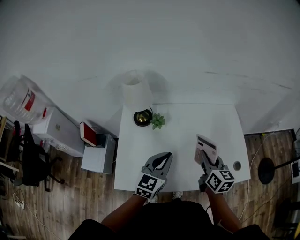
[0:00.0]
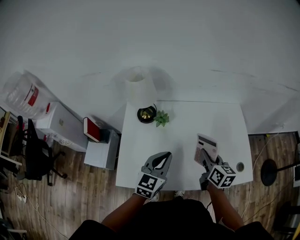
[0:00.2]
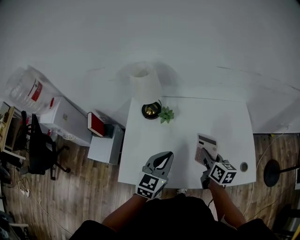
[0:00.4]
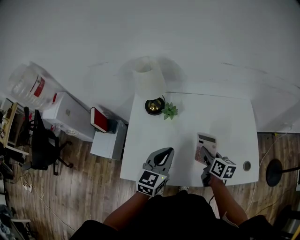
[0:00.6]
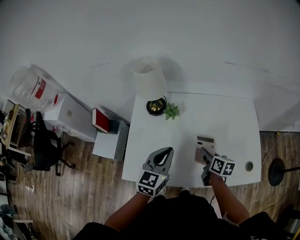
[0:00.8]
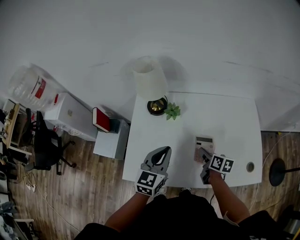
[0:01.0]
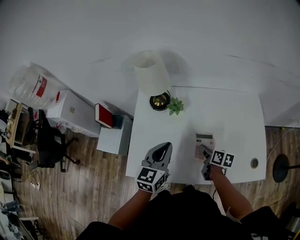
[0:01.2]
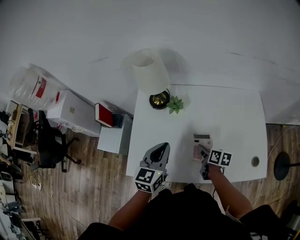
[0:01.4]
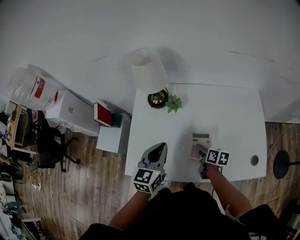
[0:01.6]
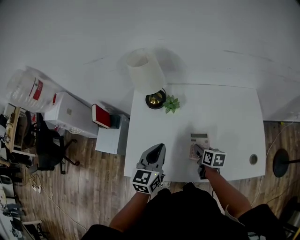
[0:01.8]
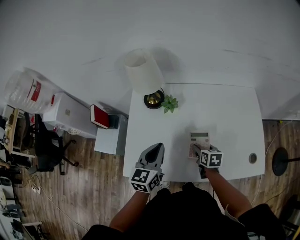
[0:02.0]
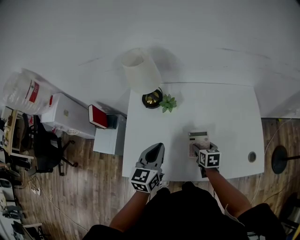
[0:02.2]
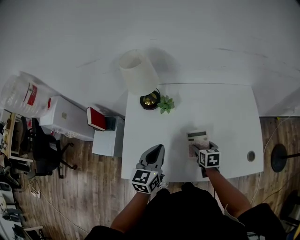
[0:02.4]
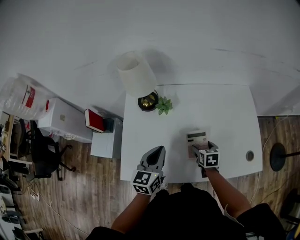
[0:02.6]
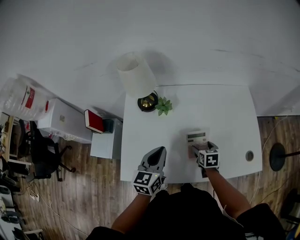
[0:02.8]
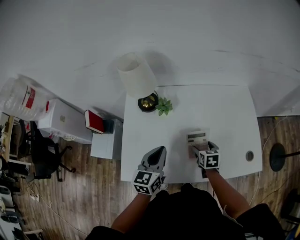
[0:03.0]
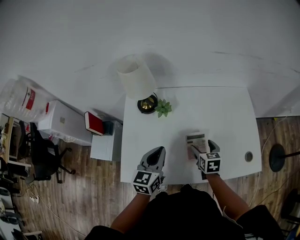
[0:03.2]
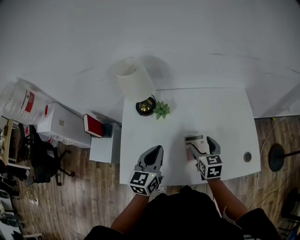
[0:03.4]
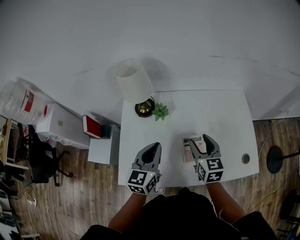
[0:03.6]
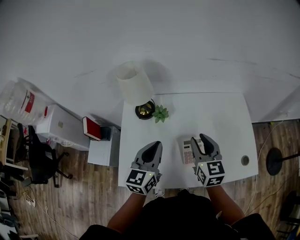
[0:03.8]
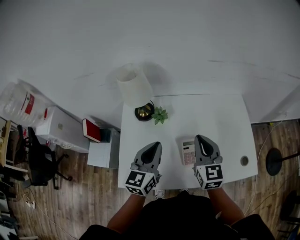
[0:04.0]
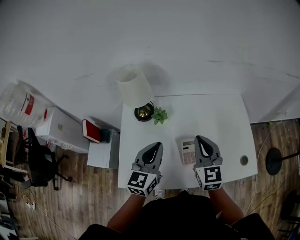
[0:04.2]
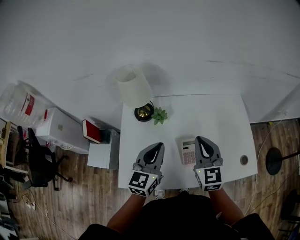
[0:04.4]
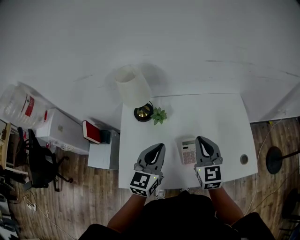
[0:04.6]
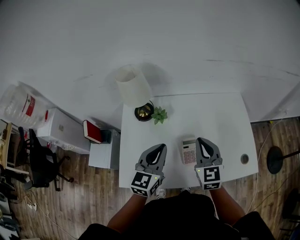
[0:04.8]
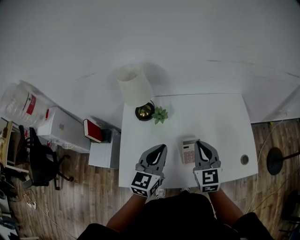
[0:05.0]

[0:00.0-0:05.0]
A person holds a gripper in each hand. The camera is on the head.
0:00.0 to 0:01.6: The left gripper goes approximately 10 cm to the left, and swivels about 20 degrees, while the right gripper is displaced downward by roughly 20 cm, and swivels about 40 degrees.
0:01.6 to 0:03.4: The right gripper heads upward, covering some 10 cm, changes its angle by roughly 40 degrees, and opens up.
0:03.4 to 0:05.0: The left gripper moves upward, about 5 cm. The right gripper goes roughly 10 cm upward, turns by approximately 20 degrees, and closes up.

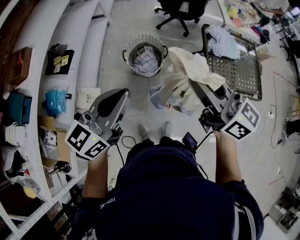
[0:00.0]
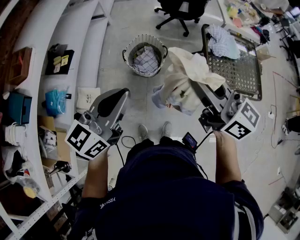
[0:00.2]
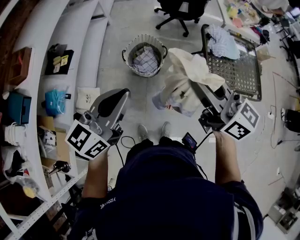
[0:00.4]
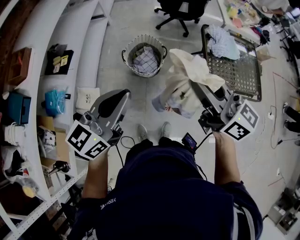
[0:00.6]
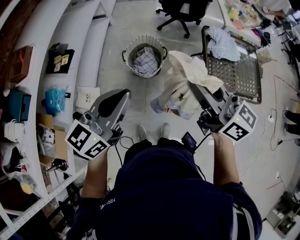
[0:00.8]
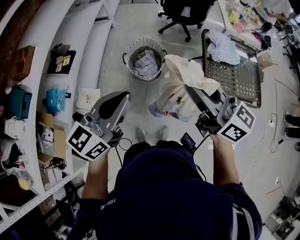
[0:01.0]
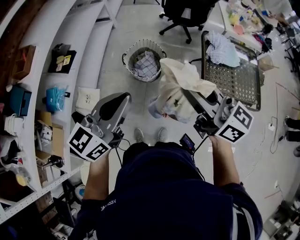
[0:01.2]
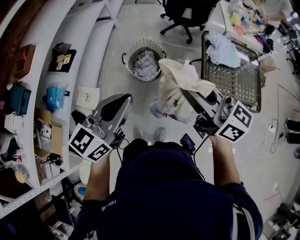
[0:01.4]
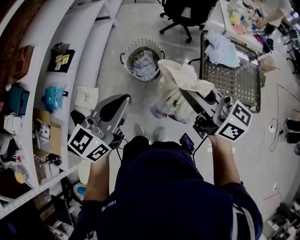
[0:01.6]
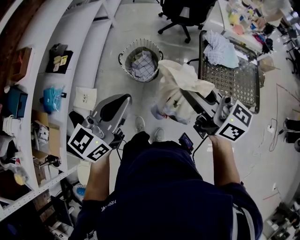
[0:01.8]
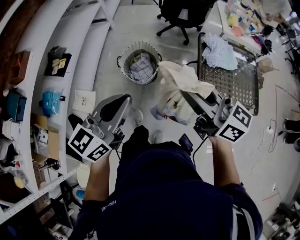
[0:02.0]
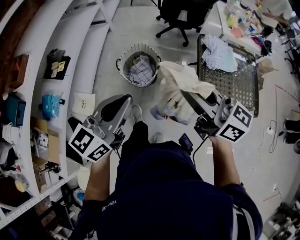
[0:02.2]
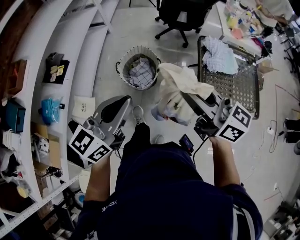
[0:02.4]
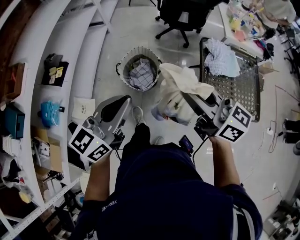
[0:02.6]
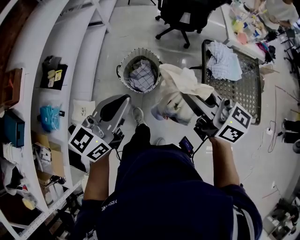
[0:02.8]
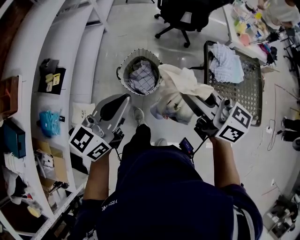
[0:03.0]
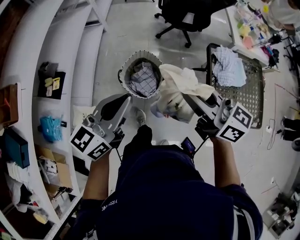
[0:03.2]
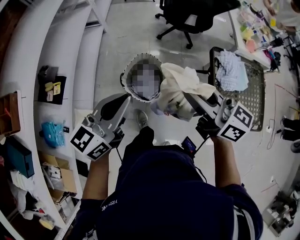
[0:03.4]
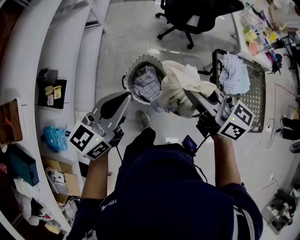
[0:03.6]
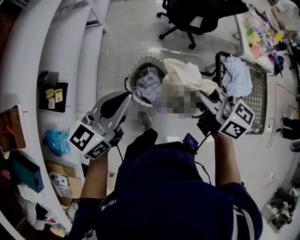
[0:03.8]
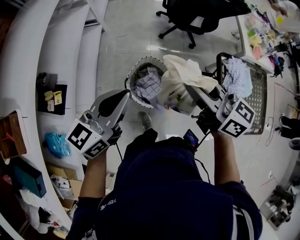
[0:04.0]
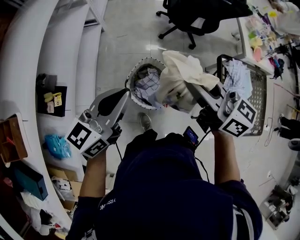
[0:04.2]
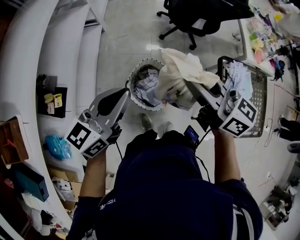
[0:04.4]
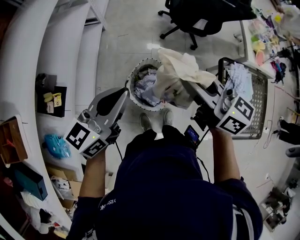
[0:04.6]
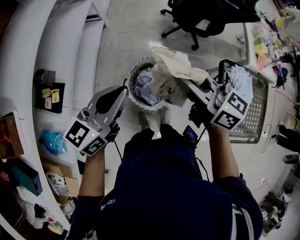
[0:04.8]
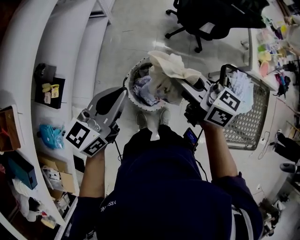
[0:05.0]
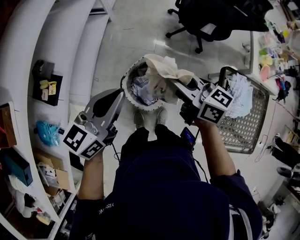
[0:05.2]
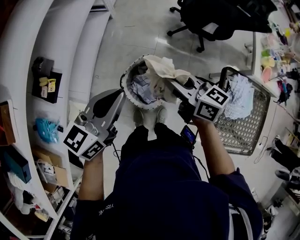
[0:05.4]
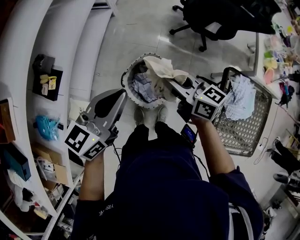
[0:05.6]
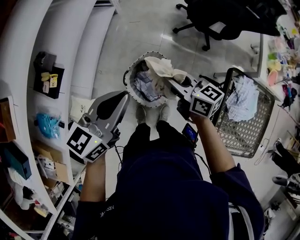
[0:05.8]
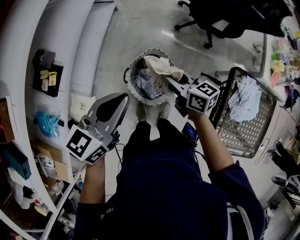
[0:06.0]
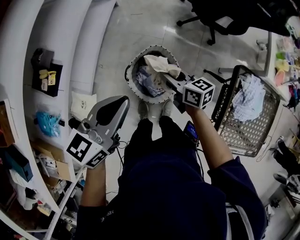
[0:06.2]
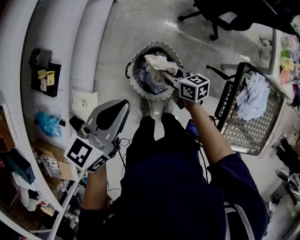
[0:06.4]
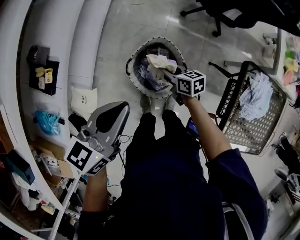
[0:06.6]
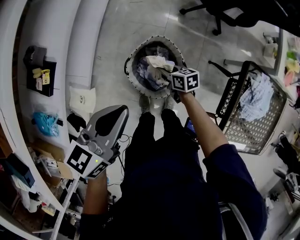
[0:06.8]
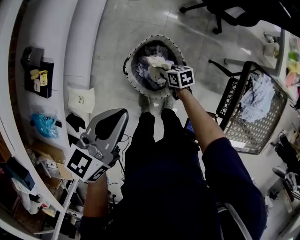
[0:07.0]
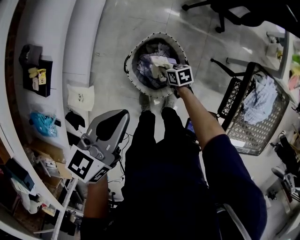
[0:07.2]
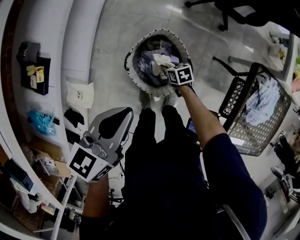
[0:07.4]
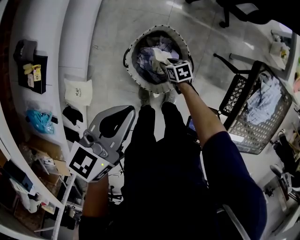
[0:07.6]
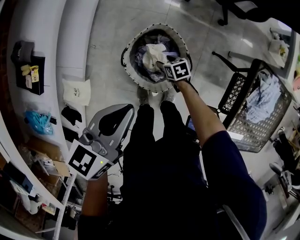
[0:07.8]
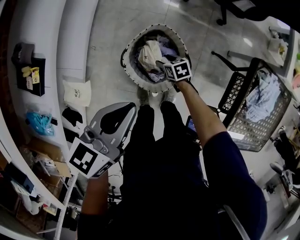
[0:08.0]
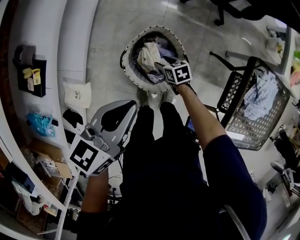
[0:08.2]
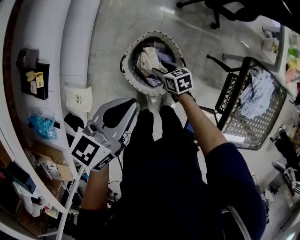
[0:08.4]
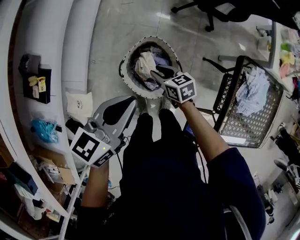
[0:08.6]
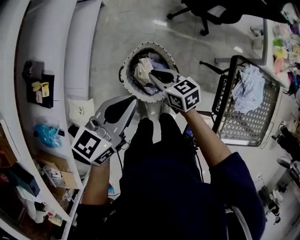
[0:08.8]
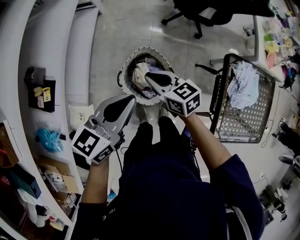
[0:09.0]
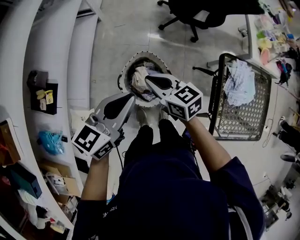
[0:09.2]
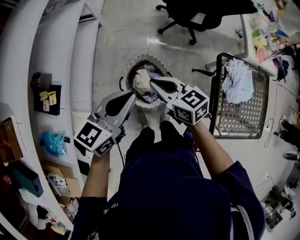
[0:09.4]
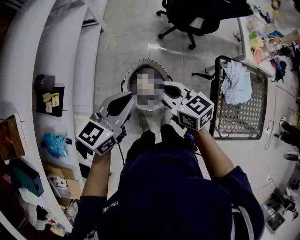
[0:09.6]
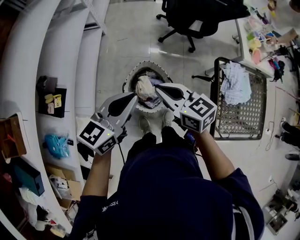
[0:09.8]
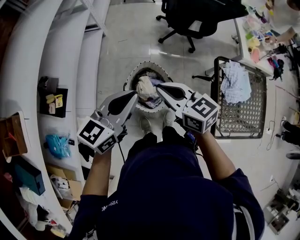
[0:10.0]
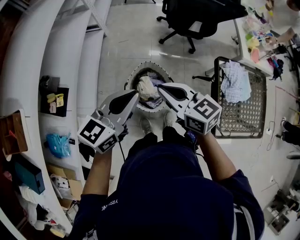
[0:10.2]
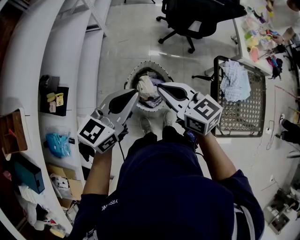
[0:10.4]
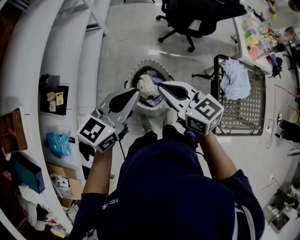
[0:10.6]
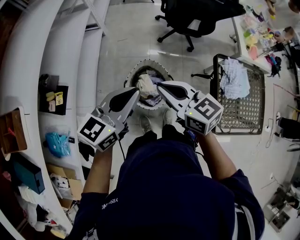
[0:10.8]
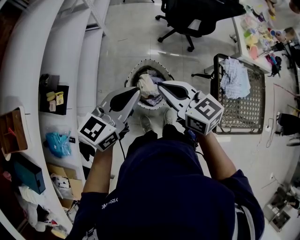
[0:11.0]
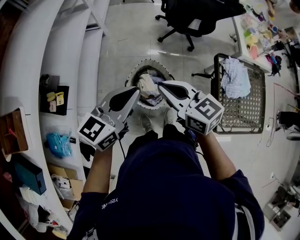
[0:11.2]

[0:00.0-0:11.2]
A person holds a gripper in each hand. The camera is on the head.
0:00.0 to 0:01.6: The grippers both shift to the right by some 10 cm.
0:01.6 to 0:03.2: Both grippers move forward, some 20 cm.
0:03.2 to 0:04.8: The two grippers go some 20 cm forward.
0:04.8 to 0:06.4: The left gripper travels downward by roughly 10 cm. Meanwhile the right gripper is displaced downward by about 30 cm, and swivels approximately 30 degrees.
0:06.4 to 0:08.0: The right gripper heads downward, covering approximately 25 cm, angles its fingers downward, by roughly 30 degrees, and opens its fingers. The left gripper heads downward, covering roughly 10 cm.
0:08.0 to 0:09.6: The right gripper moves upward, roughly 50 cm, tips its fingers upward by approximately 30 degrees, and closes up; the left gripper moves upward, roughly 15 cm, and rotates approximately 20 degrees.
0:09.6 to 0:11.2: The right gripper heads upward, covering about 5 cm; the left gripper ends up approximately 5 cm from where it was.

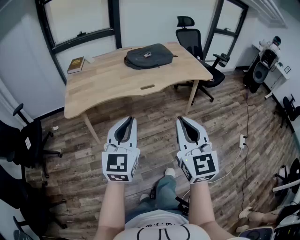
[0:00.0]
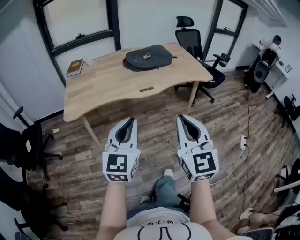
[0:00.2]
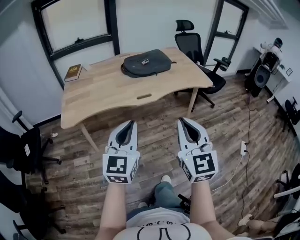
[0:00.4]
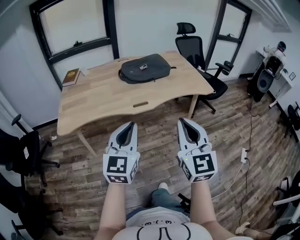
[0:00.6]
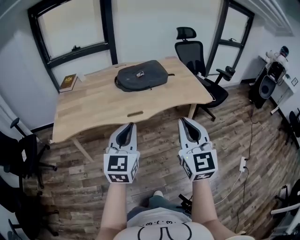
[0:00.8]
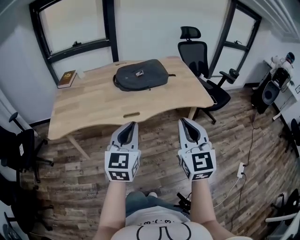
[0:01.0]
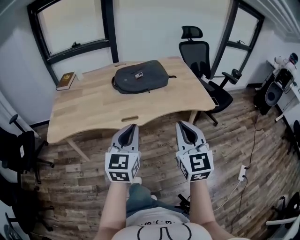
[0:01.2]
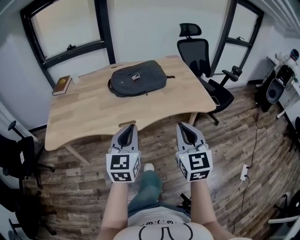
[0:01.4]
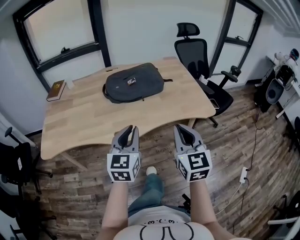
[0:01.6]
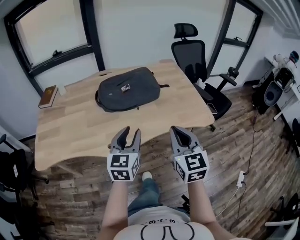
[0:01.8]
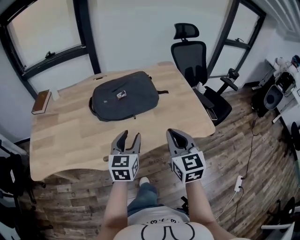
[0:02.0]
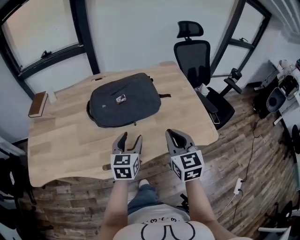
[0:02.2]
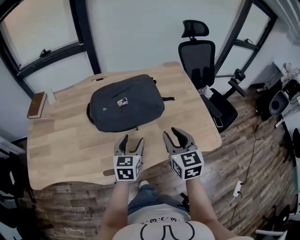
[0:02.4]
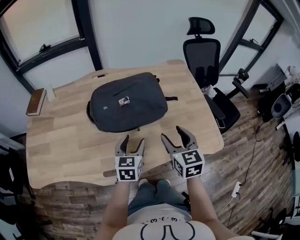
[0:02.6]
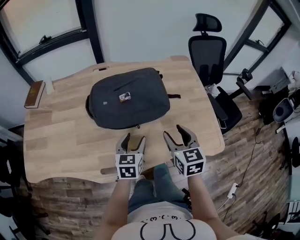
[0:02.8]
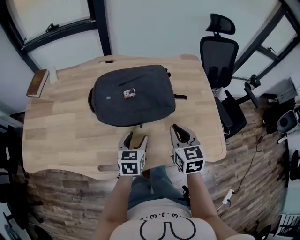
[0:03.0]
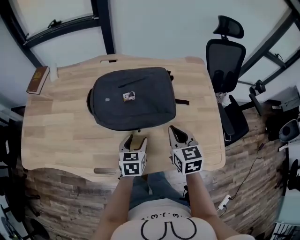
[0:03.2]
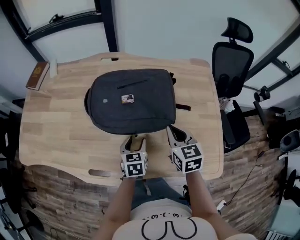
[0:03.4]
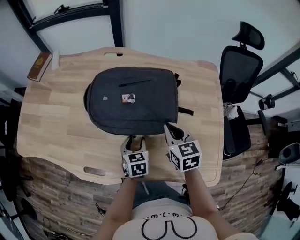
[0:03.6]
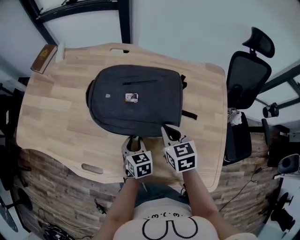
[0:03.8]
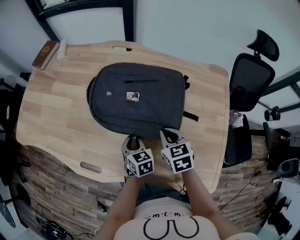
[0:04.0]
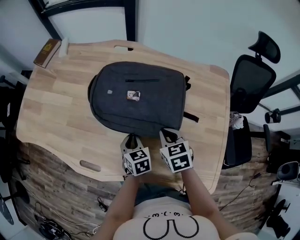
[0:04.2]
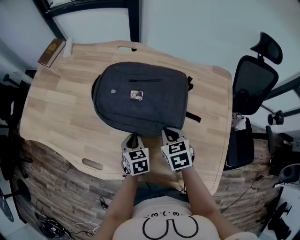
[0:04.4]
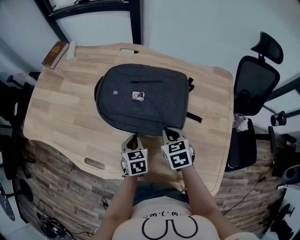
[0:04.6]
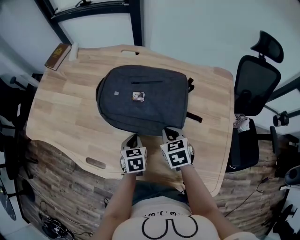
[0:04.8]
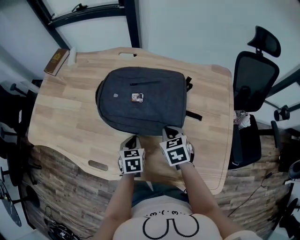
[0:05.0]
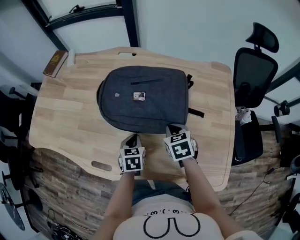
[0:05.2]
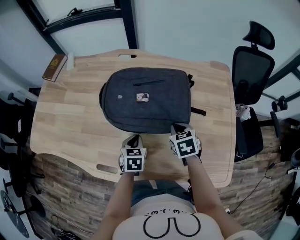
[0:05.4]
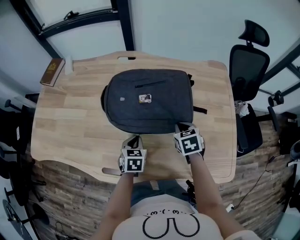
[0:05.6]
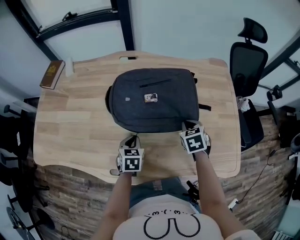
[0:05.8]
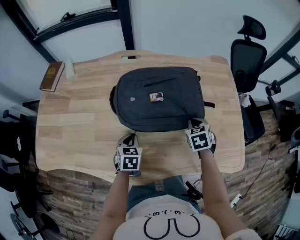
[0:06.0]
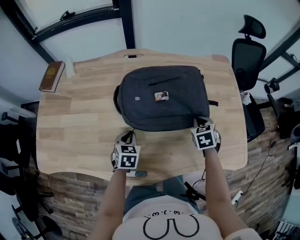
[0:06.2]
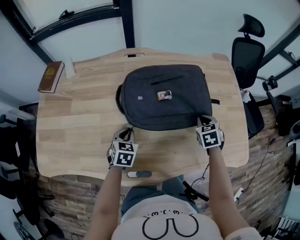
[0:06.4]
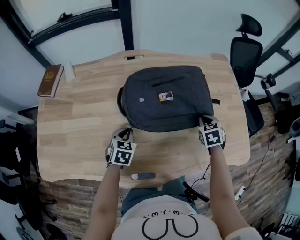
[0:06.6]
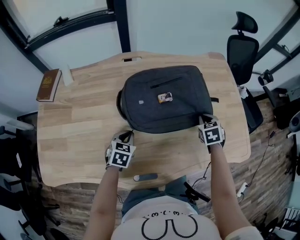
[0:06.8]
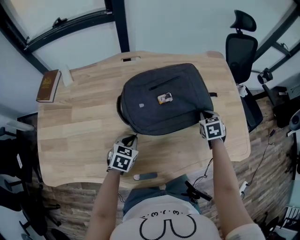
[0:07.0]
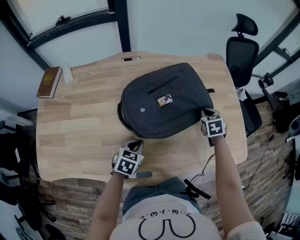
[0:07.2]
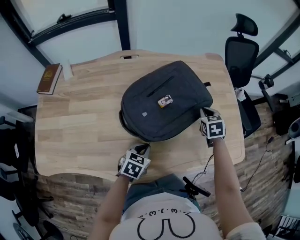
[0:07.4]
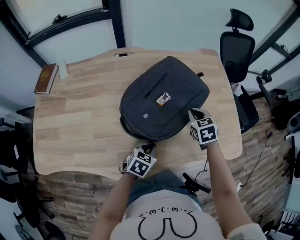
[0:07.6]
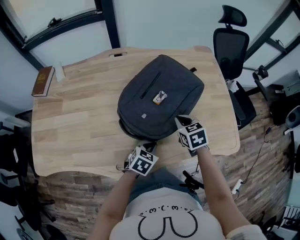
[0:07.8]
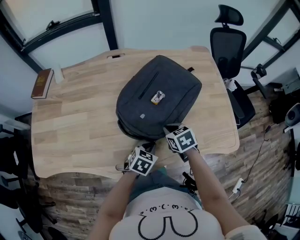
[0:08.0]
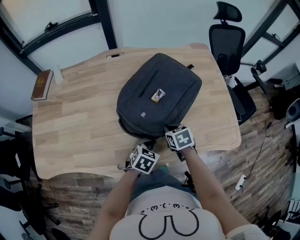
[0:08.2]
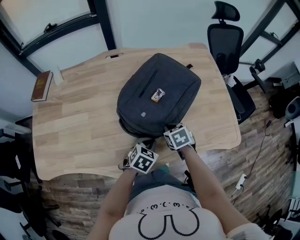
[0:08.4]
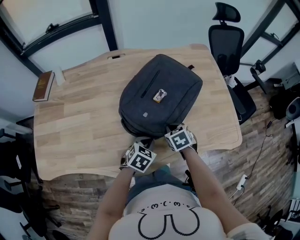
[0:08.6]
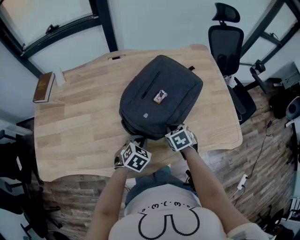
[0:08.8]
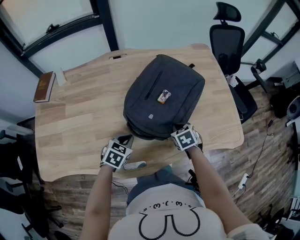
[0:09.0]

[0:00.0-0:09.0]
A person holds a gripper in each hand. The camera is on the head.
0:00.0 to 0:01.6: The two grippers travel together, forward and to the right, about 40 cm.
0:01.6 to 0:03.0: The left gripper is displaced forward and downward by approximately 35 cm, rotates roughly 30 degrees, and opens; the right gripper travels forward by roughly 35 cm, rotates some 20 degrees, and opens and closes again.
0:03.0 to 0:04.4: Both grippers travel together downward, approximately 10 cm. The left gripper turns by about 40 degrees, and closes, while the right gripper turns by roughly 30 degrees.
0:04.4 to 0:06.0: The left gripper moves roughly 15 cm, and changes its angle by approximately 30 degrees. The right gripper rotates roughly 20 degrees.
0:06.0 to 0:07.6: The left gripper moves to the right and backward, roughly 15 cm, and changes its angle by roughly 30 degrees.
0:07.6 to 0:09.0: The right gripper moves backward and downward, approximately 15 cm. The left gripper shifts about 10 cm to the left.
